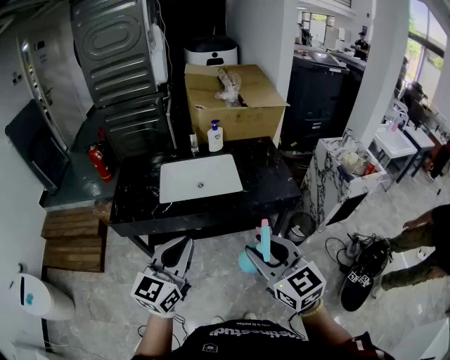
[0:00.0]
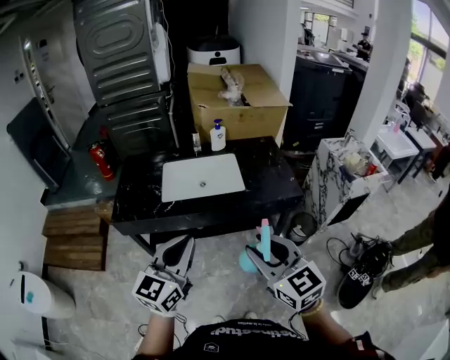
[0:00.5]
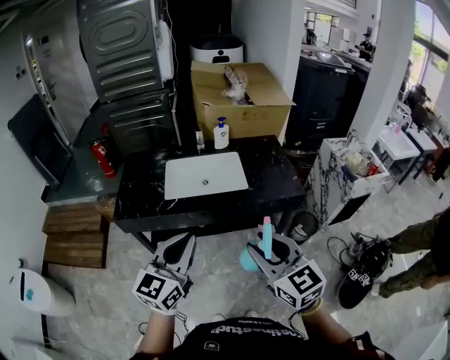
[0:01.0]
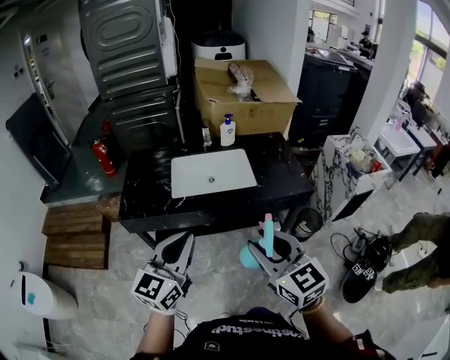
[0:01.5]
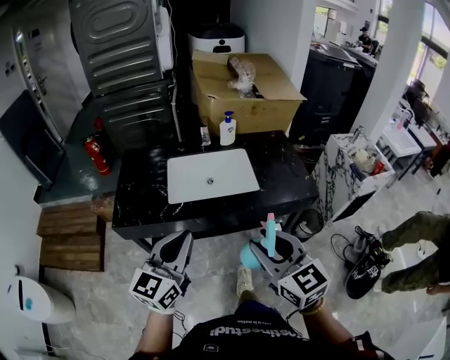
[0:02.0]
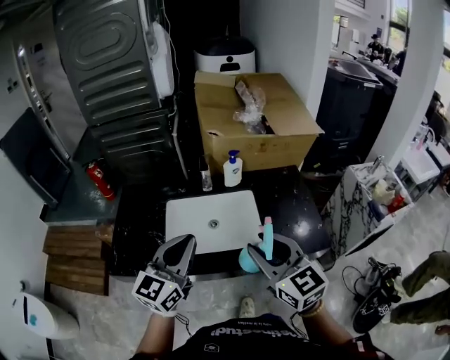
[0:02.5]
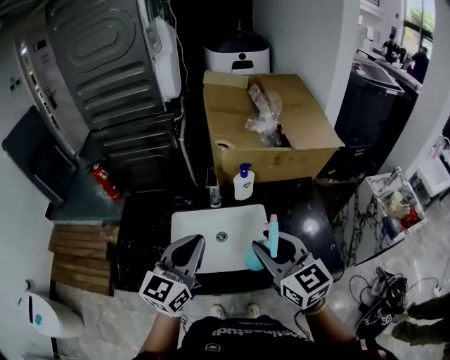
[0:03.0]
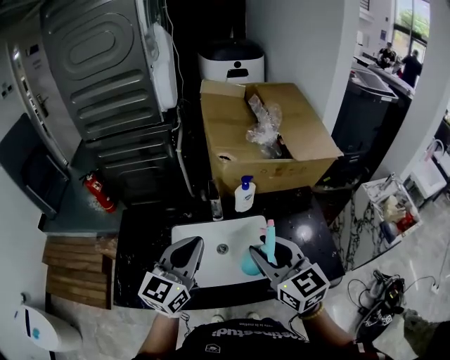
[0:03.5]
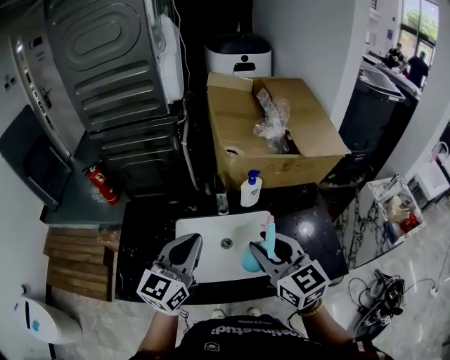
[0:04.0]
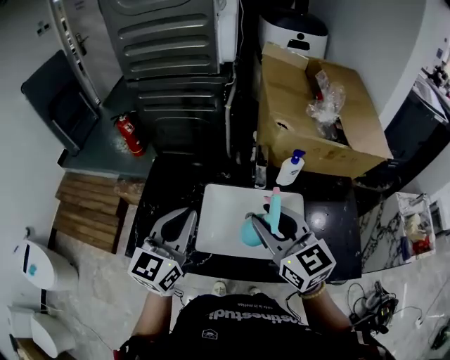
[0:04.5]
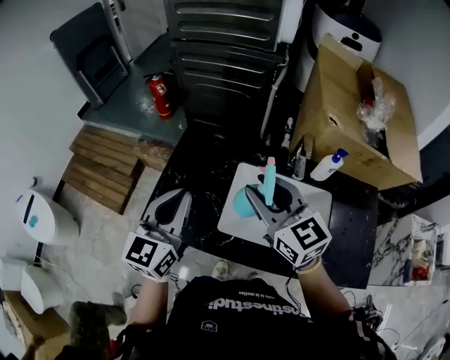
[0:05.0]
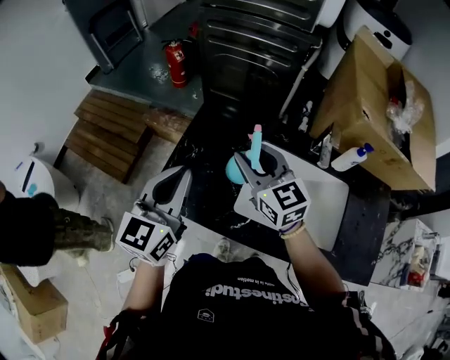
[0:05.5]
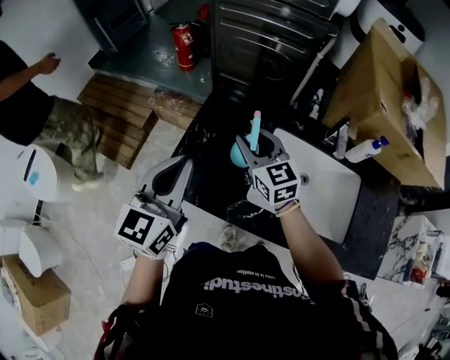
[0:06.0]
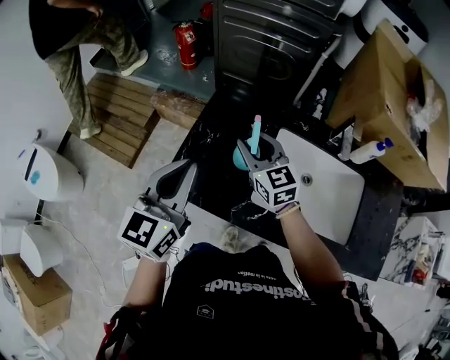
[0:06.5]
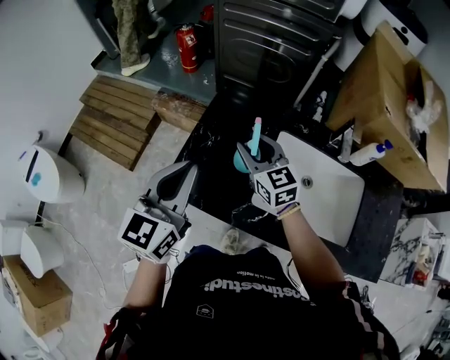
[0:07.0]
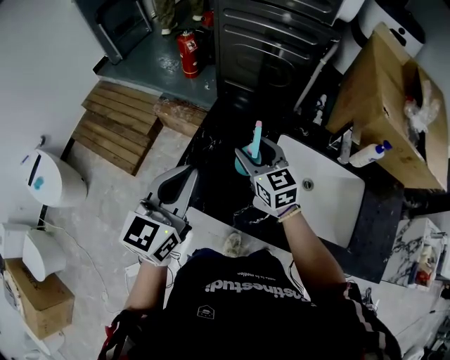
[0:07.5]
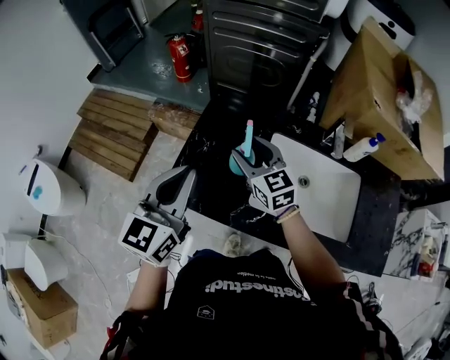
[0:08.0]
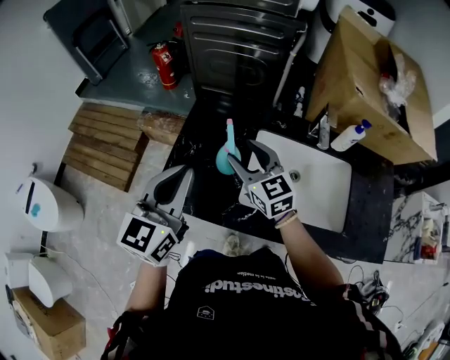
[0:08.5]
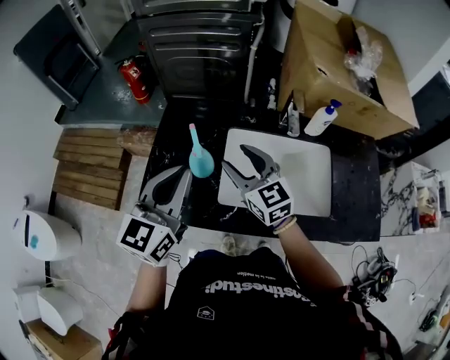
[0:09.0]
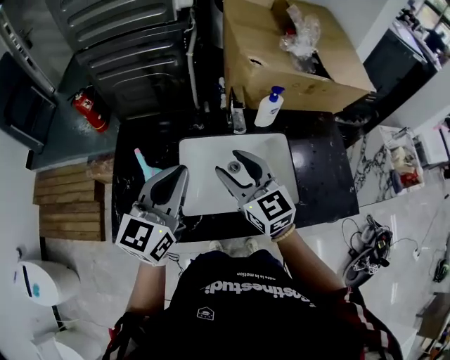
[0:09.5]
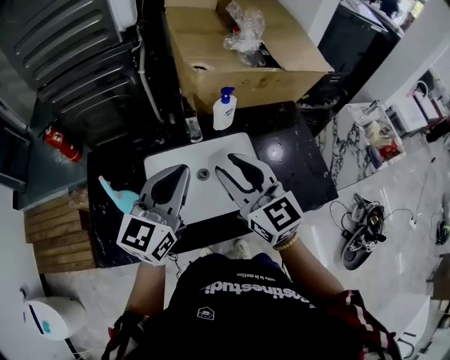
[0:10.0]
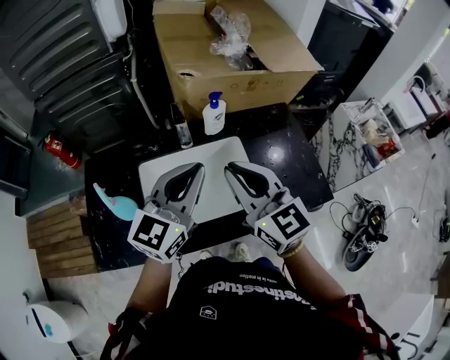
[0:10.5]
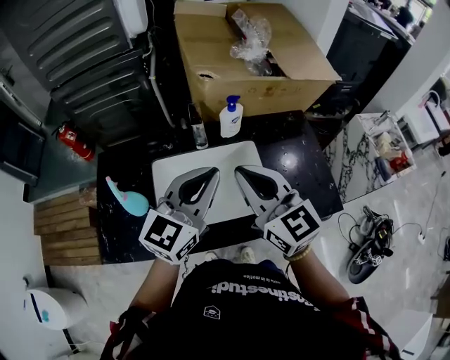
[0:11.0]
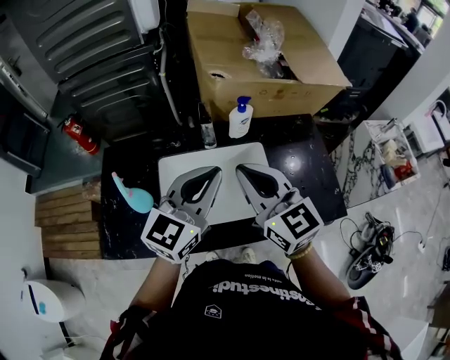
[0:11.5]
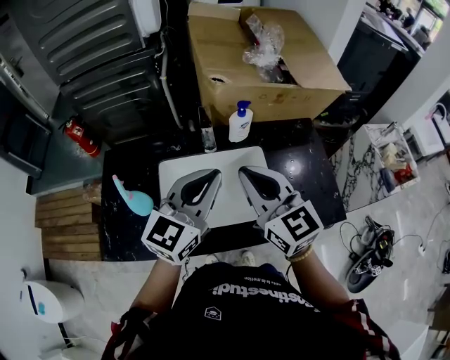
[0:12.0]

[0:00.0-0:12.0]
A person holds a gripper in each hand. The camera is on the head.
0:00.0 to 0:02.0: Both grippers travel together forward and to the left, approximately 10 cm.
0:02.0 to 0:04.0: Both grippers move forward, roughly 35 cm.
0:04.0 to 0:06.0: The right gripper shifts by approximately 40 cm, and changes its angle by about 30 degrees. Meanwhile the left gripper changes place by roughly 35 cm, and swivels approximately 30 degrees.
0:06.0 to 0:08.0: The grippers stay close to where they were, moving slightly.
0:08.0 to 0:10.0: The right gripper moves approximately 40 cm, and swivels approximately 30 degrees; the left gripper ends up approximately 35 cm from where it was, and rotates about 40 degrees.
0:10.0 to 0:12.0: The right gripper closes up. The left gripper is displaced to the right by approximately 5 cm.

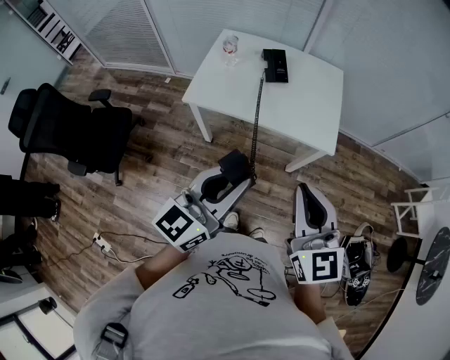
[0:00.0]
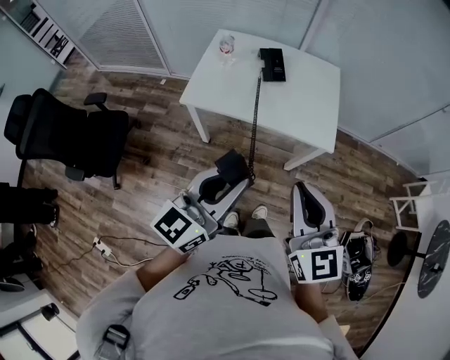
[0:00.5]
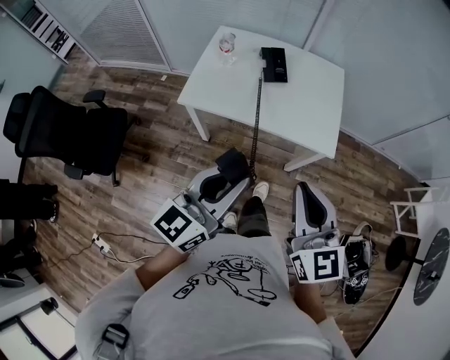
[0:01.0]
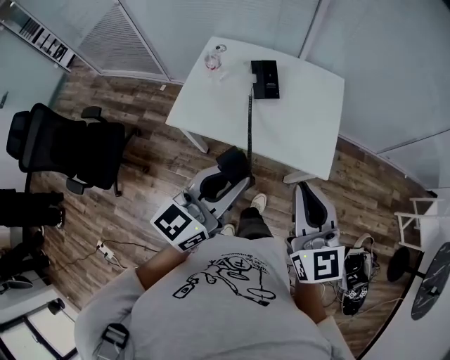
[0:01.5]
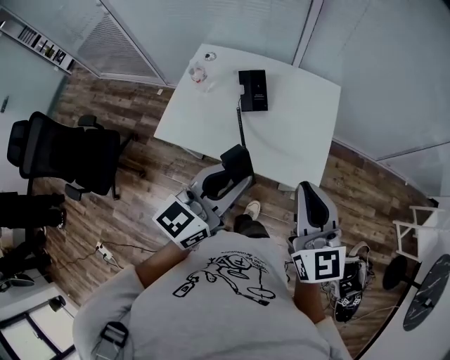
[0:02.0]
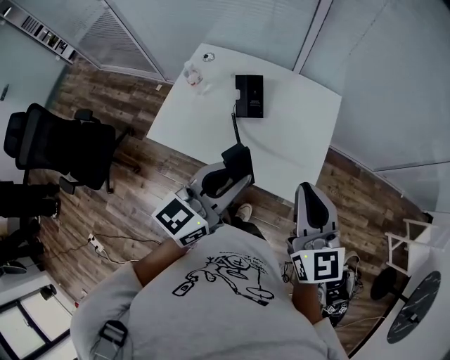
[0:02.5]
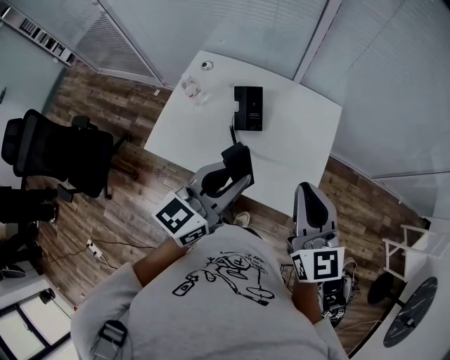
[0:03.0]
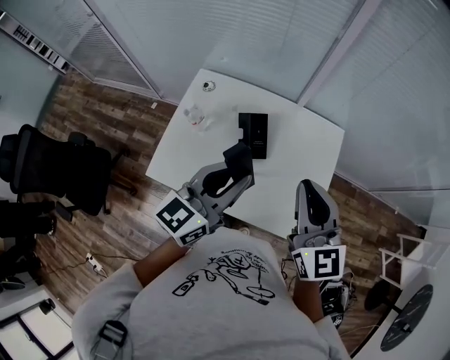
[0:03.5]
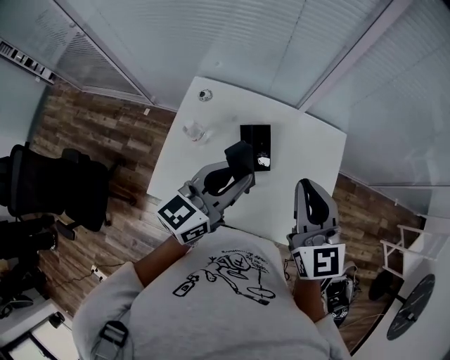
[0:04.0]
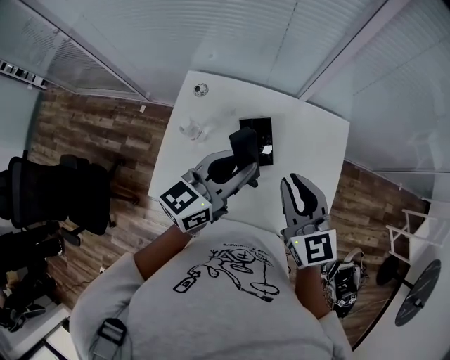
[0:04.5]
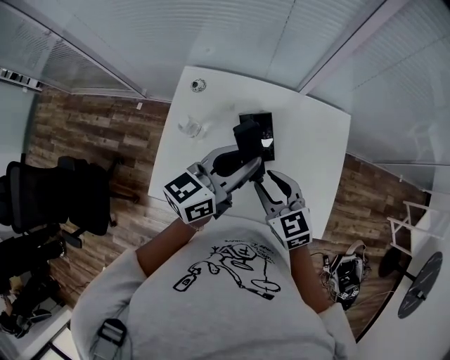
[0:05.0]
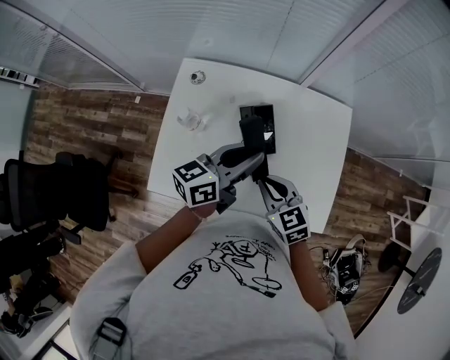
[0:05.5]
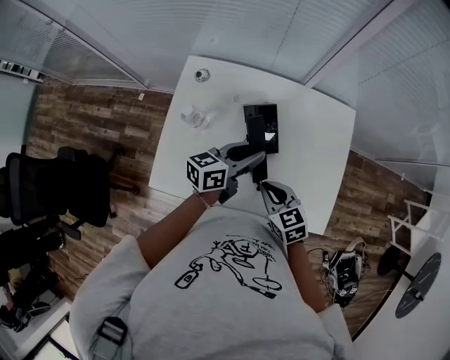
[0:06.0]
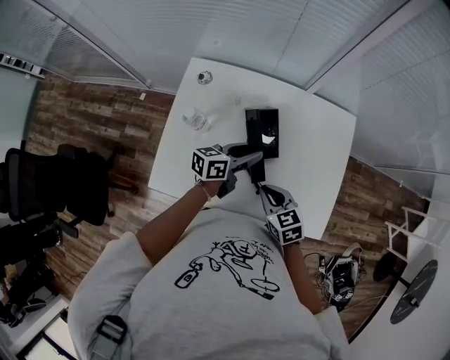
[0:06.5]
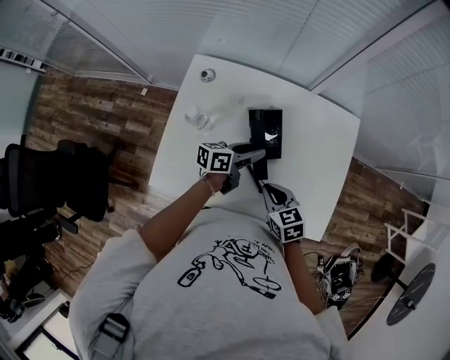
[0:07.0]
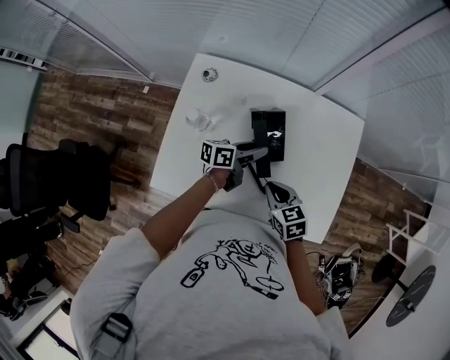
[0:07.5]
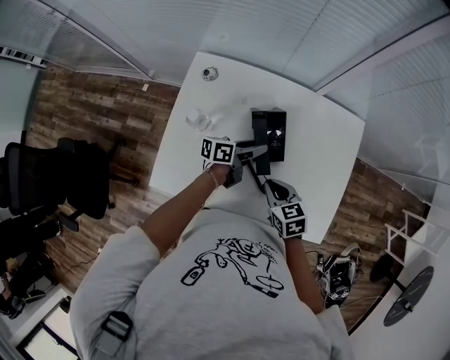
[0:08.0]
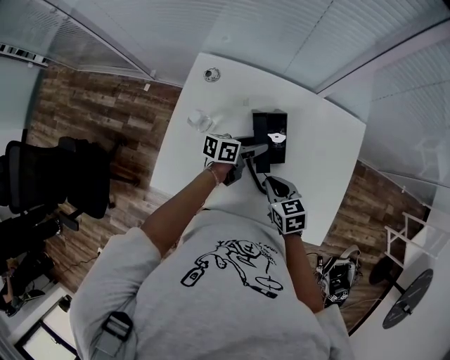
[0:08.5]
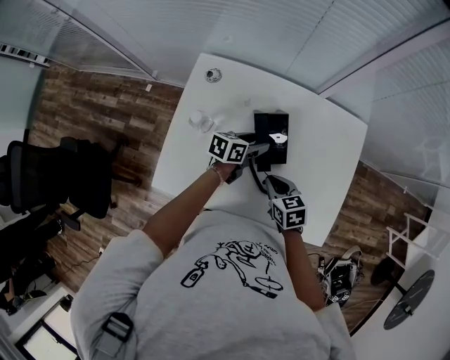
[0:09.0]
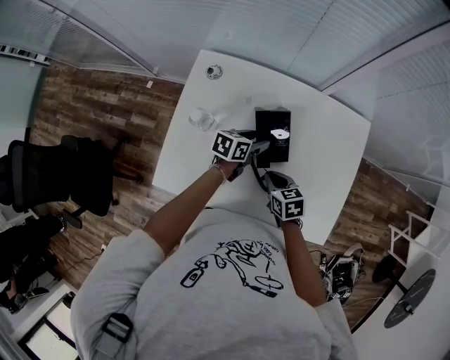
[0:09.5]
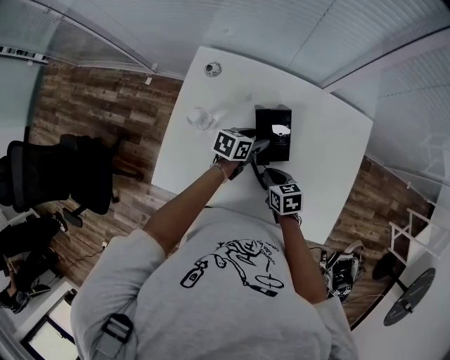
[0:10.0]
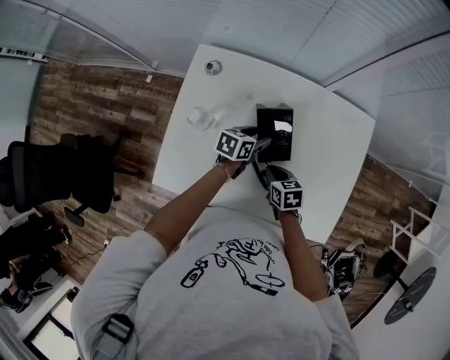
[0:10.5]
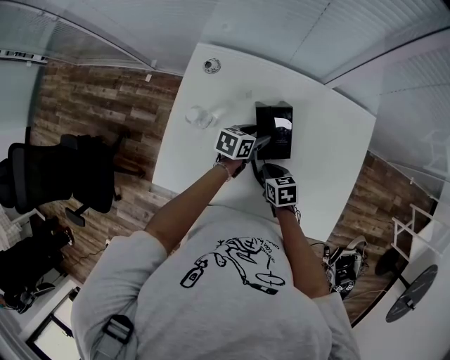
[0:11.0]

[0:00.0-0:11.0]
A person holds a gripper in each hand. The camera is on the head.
0:00.0 to 0:02.0: Both grippers travel together forward, about 25 cm.
0:02.0 to 0:03.5: Both grippers travel together forward, about 20 cm.
0:03.5 to 0:05.5: The right gripper shifts some 25 cm downward and to the left, tilts its fingers about 30 degrees downward, and opens, then closes again, while the left gripper shifts about 15 cm downward and forward, and changes its angle by about 30 degrees.
0:05.5 to 0:07.5: The left gripper moves downward, some 20 cm, and rotates about 20 degrees; the right gripper shifts approximately 10 cm downward.
0:07.5 to 0:09.0: The left gripper rotates about 20 degrees.
0:09.0 to 0:11.0: The right gripper travels downward by roughly 10 cm.

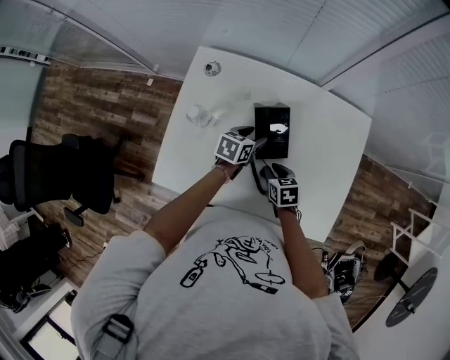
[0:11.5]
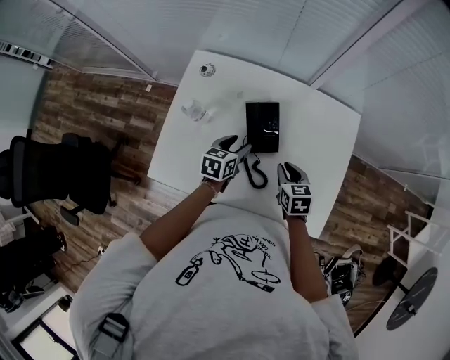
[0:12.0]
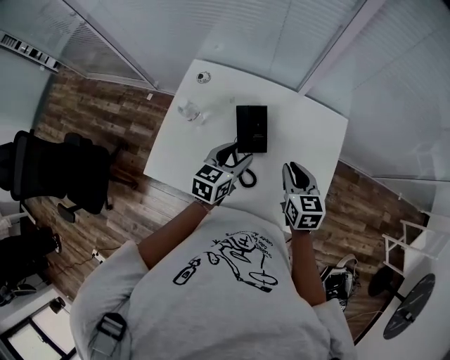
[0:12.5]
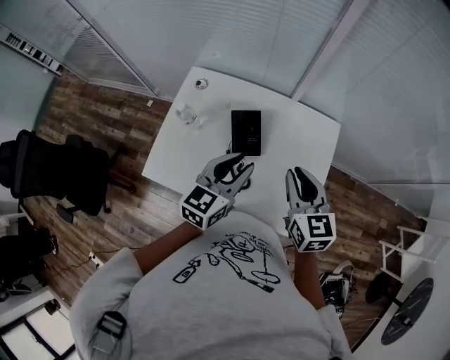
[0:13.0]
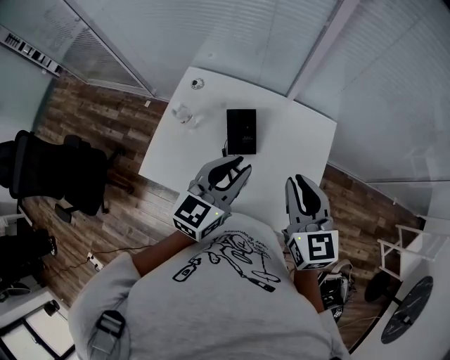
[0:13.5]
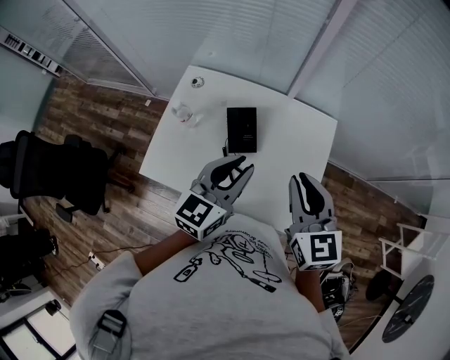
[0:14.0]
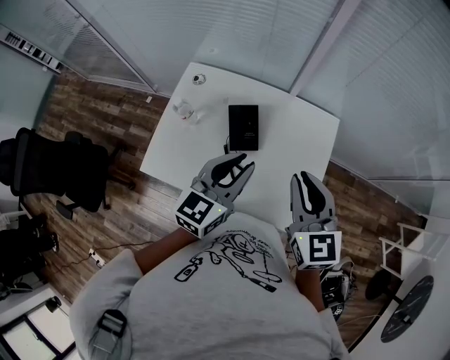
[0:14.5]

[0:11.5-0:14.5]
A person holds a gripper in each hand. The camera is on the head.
0:11.5 to 0:13.0: The left gripper is displaced upward and backward by about 30 cm, turns by some 40 degrees, and closes its fingers. Meanwhile the right gripper shifts some 35 cm upward, and angles its fingers upward, by about 30 degrees.
0:13.0 to 0:14.5: The left gripper ends up approximately 5 cm from where it was; the right gripper shifts roughly 5 cm upward.

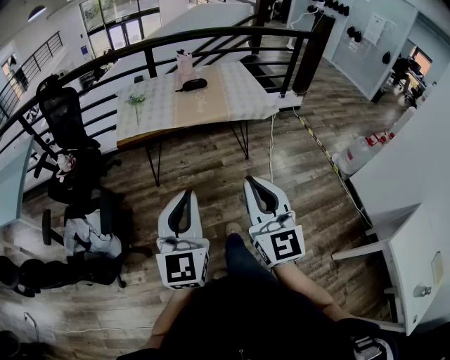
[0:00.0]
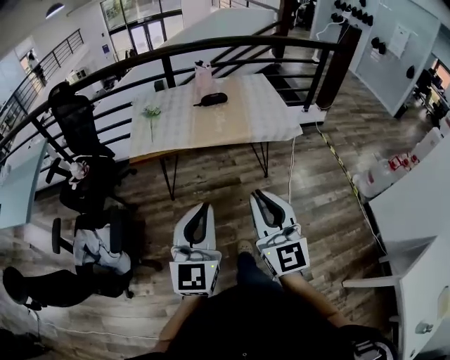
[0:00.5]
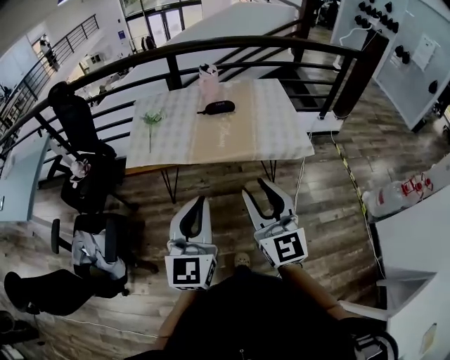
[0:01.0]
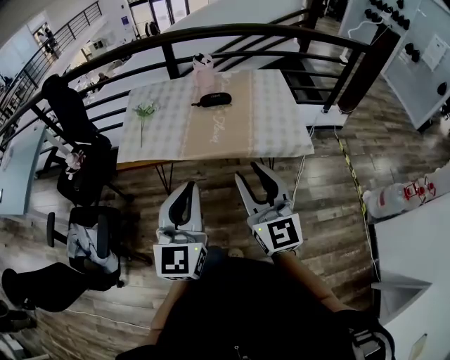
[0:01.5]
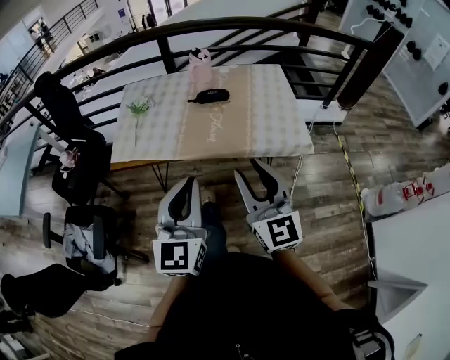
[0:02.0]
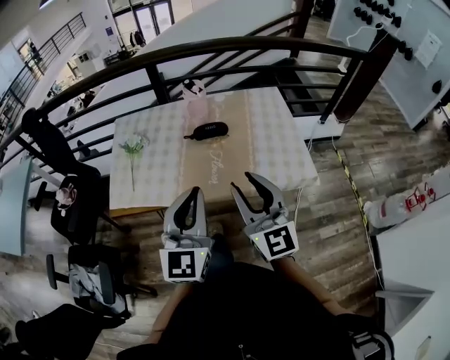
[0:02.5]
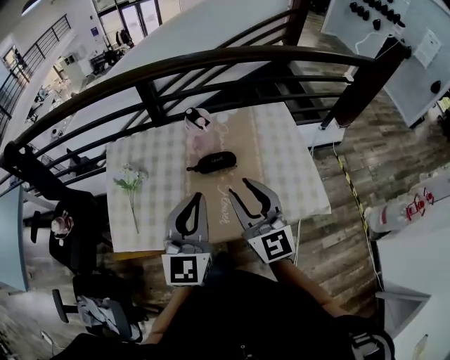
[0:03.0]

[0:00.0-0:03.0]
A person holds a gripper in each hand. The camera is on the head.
0:00.0 to 0:01.5: The two grippers go some 35 cm forward.
0:01.5 to 0:03.0: Both grippers travel together forward, approximately 35 cm.
